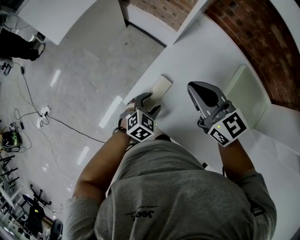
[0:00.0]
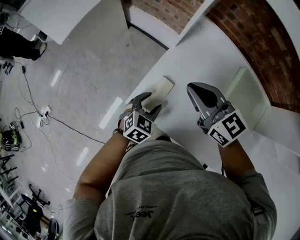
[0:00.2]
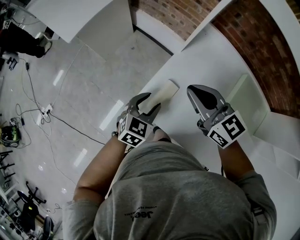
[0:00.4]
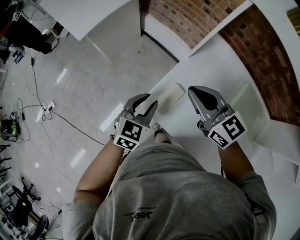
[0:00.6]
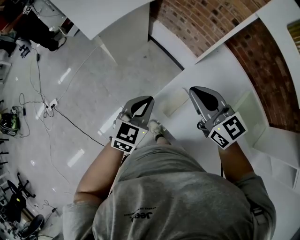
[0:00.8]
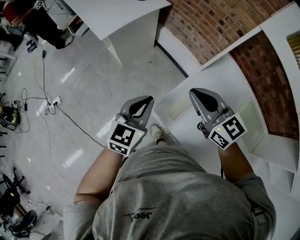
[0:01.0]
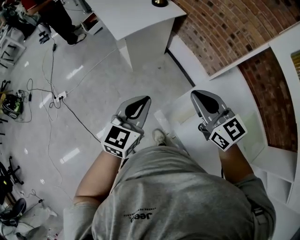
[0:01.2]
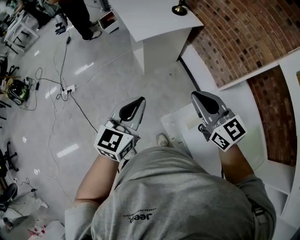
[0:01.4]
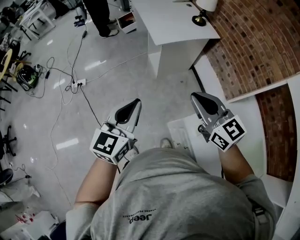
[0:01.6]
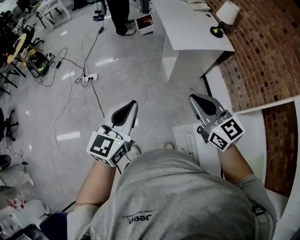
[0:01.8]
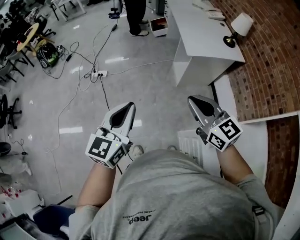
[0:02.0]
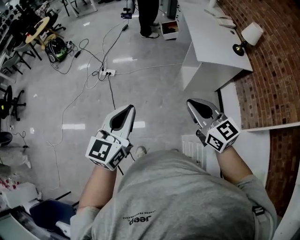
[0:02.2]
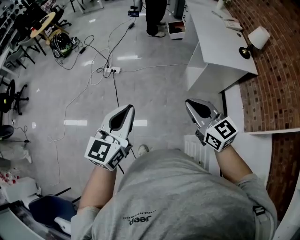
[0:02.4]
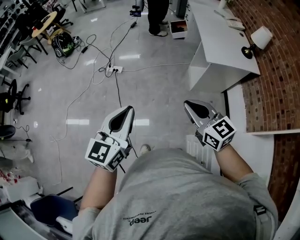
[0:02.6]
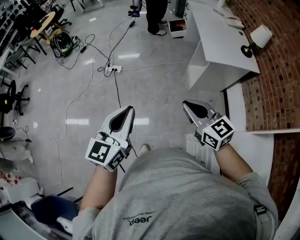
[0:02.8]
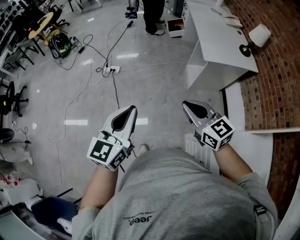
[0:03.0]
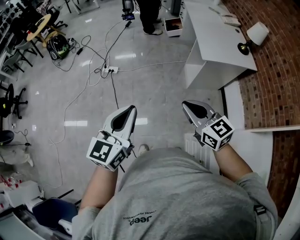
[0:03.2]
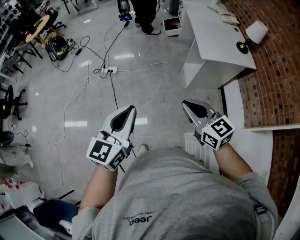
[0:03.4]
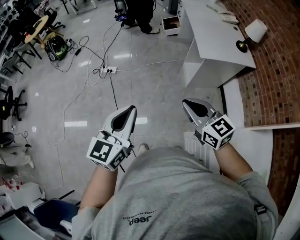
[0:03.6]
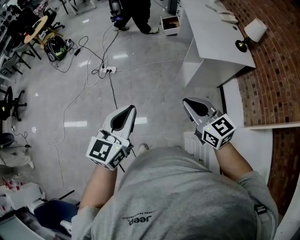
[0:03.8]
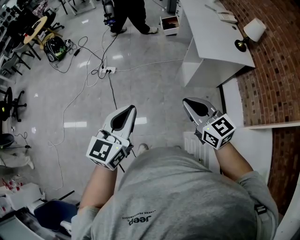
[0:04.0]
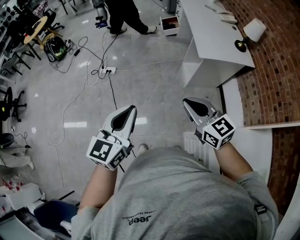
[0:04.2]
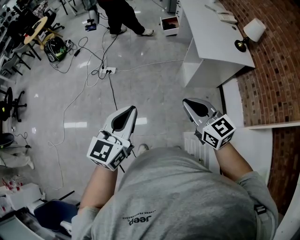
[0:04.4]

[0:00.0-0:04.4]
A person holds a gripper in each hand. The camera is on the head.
0:00.0 to 0:01.4: The left gripper moves upward, roughly 30 cm, points its fingers approximately 40 degrees further upward, and closes up, while the right gripper changes place by approximately 25 cm, and swivels approximately 20 degrees.
0:01.4 to 0:03.0: The left gripper changes place by roughly 30 cm, and swivels some 30 degrees. The right gripper ends up approximately 30 cm from where it was, and changes its angle by approximately 30 degrees.
0:03.0 to 0:04.4: The grippers make only small movements.

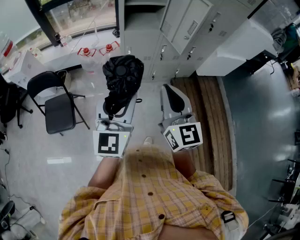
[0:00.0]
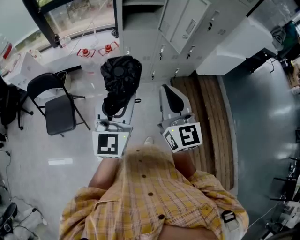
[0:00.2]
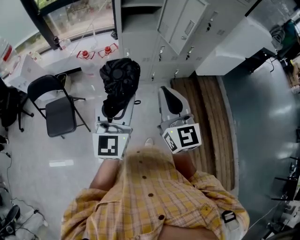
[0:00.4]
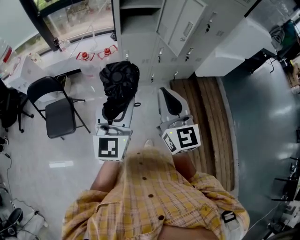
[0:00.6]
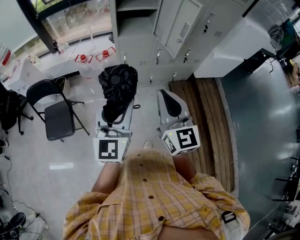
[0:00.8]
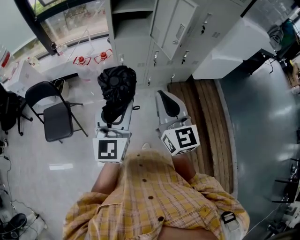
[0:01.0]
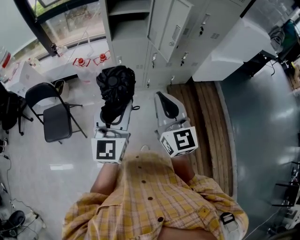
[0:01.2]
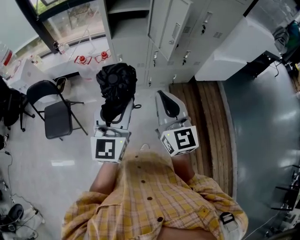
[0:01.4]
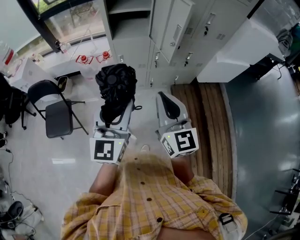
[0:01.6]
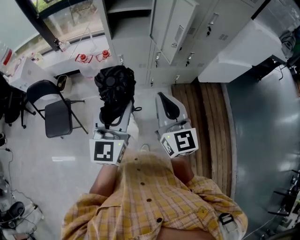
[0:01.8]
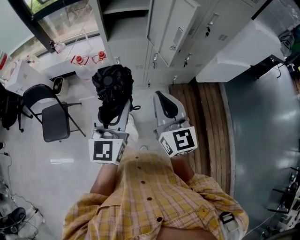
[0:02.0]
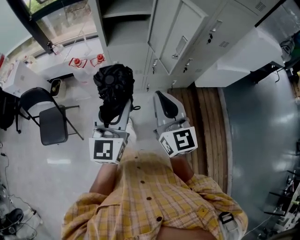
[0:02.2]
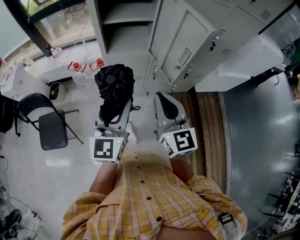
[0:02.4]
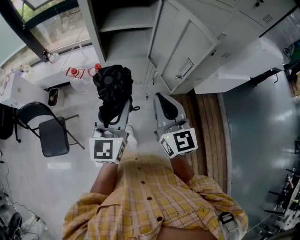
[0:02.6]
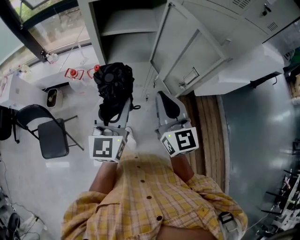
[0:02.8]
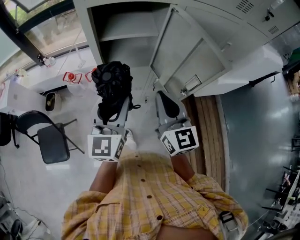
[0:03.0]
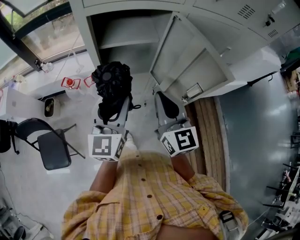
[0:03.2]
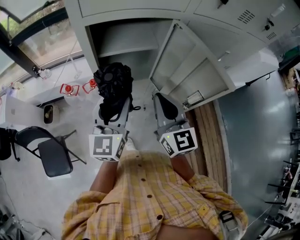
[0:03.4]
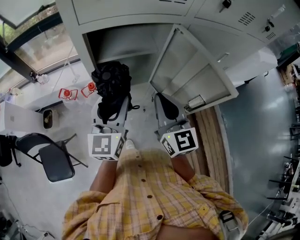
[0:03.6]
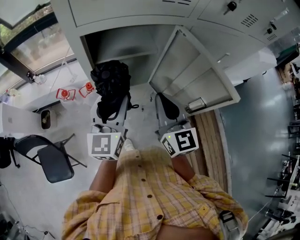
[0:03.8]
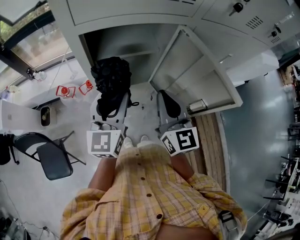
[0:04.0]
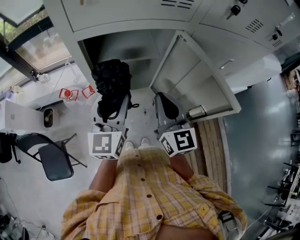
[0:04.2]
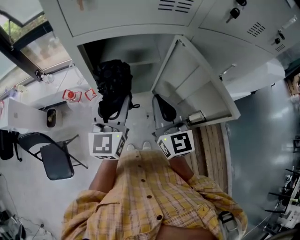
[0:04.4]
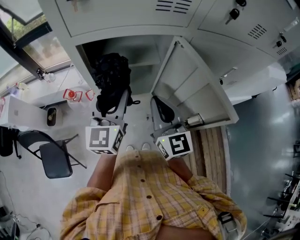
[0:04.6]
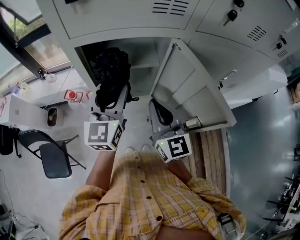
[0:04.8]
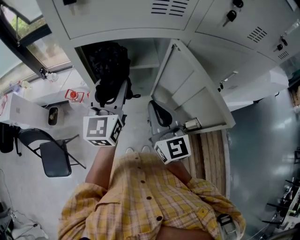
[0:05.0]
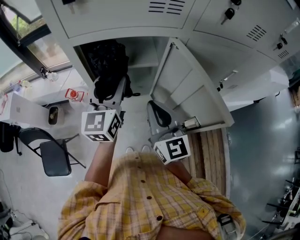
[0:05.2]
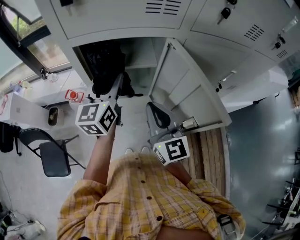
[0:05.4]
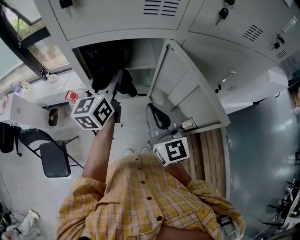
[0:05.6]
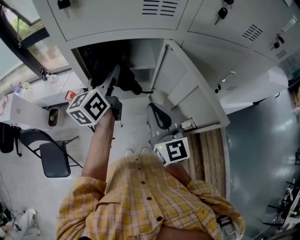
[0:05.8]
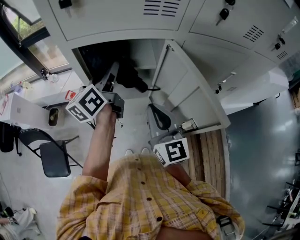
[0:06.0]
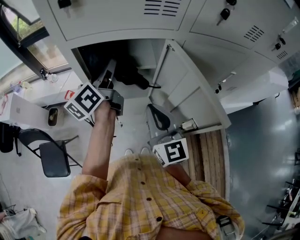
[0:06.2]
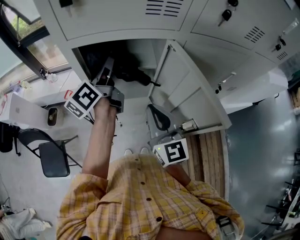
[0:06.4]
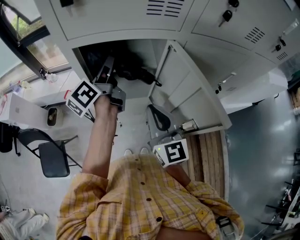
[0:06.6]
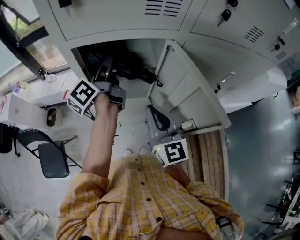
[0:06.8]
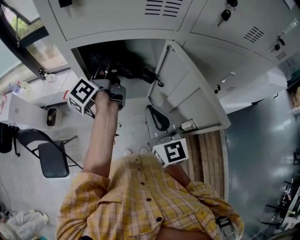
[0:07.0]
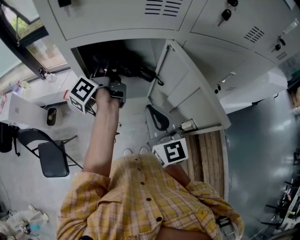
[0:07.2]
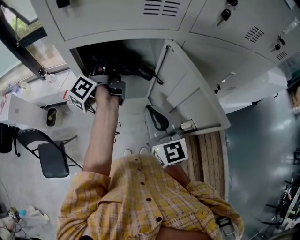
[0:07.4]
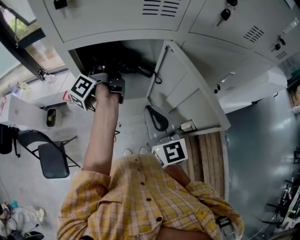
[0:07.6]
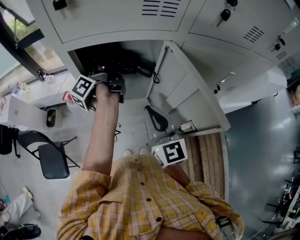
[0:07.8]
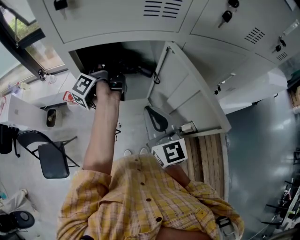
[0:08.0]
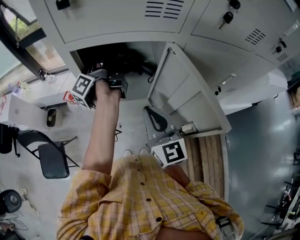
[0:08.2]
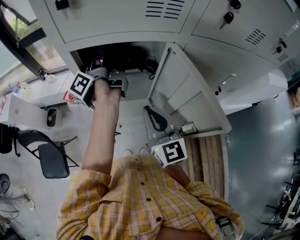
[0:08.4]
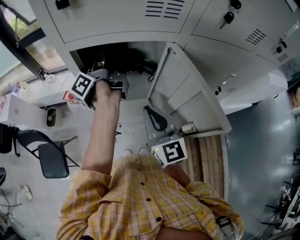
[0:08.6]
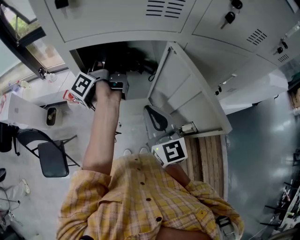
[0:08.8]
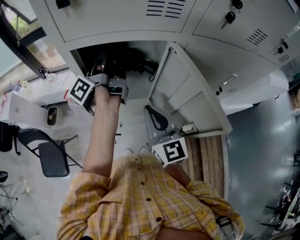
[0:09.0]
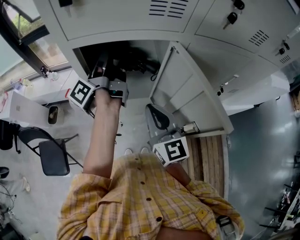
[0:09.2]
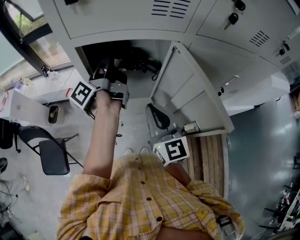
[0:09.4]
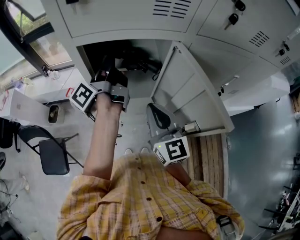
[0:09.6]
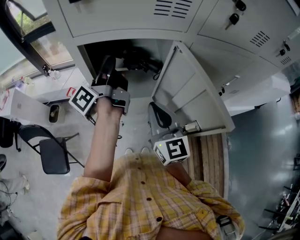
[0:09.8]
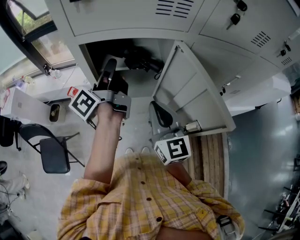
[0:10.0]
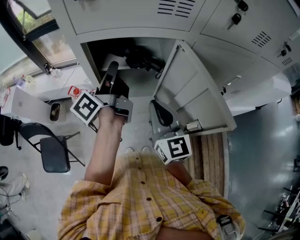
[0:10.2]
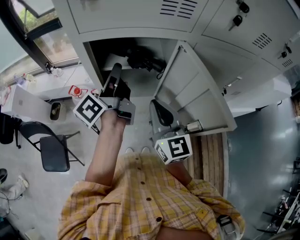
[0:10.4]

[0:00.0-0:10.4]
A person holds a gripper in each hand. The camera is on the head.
0:00.0 to 0:01.4: The two grippers go some 10 cm to the right.
0:01.4 to 0:03.0: The two grippers go some 30 cm forward.
0:03.0 to 0:04.4: The grippers both shift forward by approximately 15 cm.
0:04.4 to 0:06.0: The left gripper moves forward, roughly 10 cm, and swivels some 40 degrees.
0:06.0 to 0:07.4: The left gripper shifts roughly 5 cm forward, and rotates roughly 40 degrees.
0:07.4 to 0:09.0: The grippers stay close to where they were, moving slightly.
0:09.0 to 0:10.4: The left gripper travels backward by about 10 cm, turns by roughly 20 degrees, and closes its fingers.

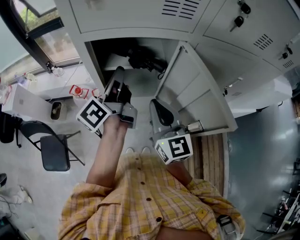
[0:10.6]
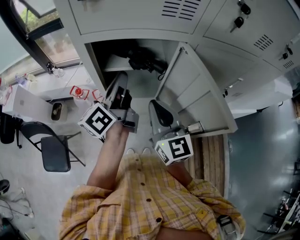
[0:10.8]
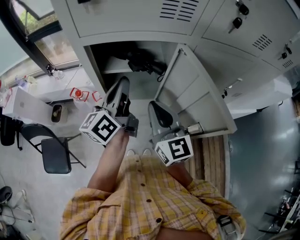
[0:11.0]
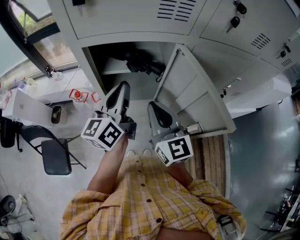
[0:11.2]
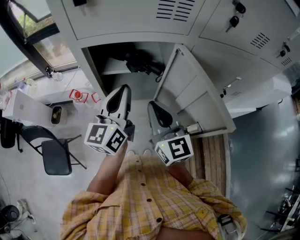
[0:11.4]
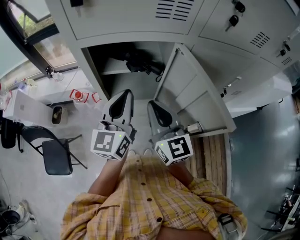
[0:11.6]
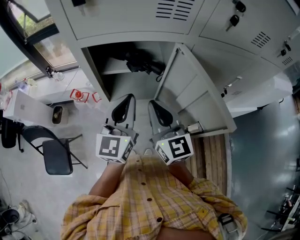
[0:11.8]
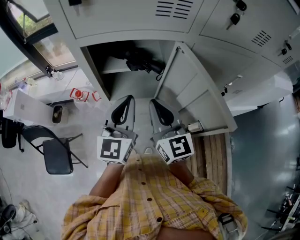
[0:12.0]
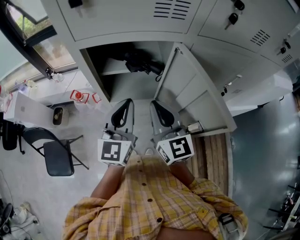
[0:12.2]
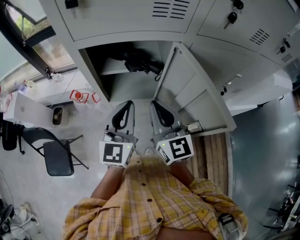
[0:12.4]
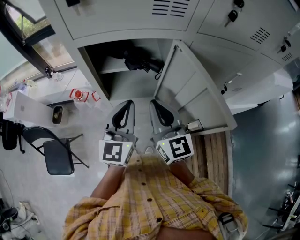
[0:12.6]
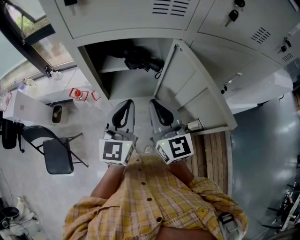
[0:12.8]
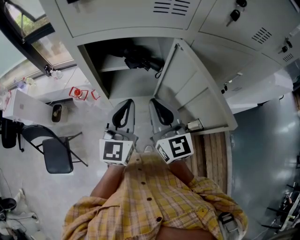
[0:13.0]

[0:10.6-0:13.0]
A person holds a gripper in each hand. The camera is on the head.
0:10.6 to 0:11.8: The left gripper goes about 10 cm backward, and twists roughly 60 degrees clockwise, seen from behind.
0:11.8 to 0:13.0: There are only small adjustments of the grippers.

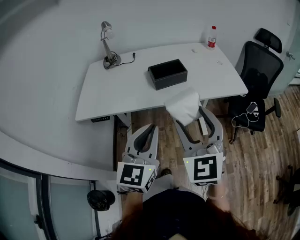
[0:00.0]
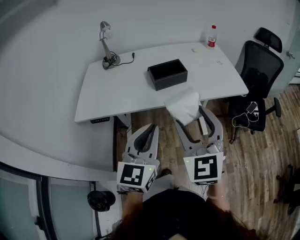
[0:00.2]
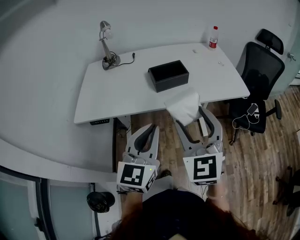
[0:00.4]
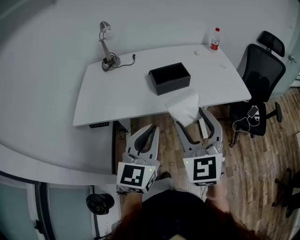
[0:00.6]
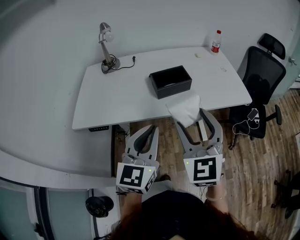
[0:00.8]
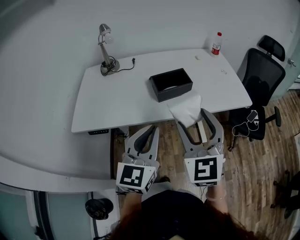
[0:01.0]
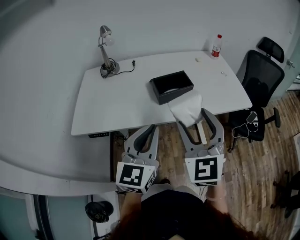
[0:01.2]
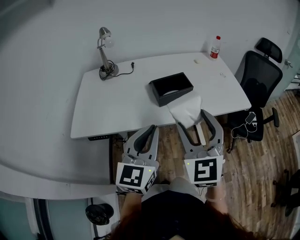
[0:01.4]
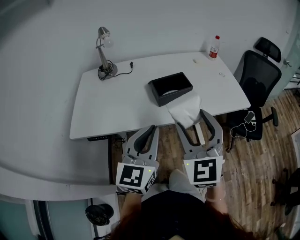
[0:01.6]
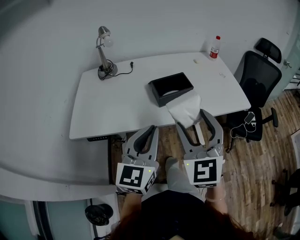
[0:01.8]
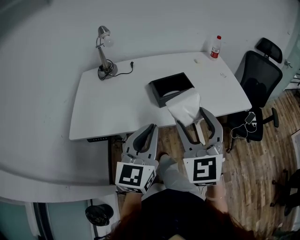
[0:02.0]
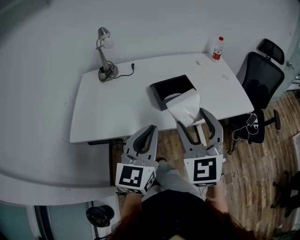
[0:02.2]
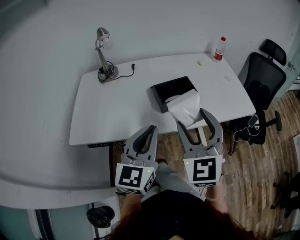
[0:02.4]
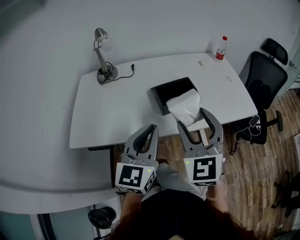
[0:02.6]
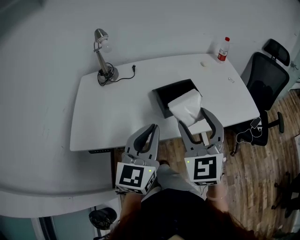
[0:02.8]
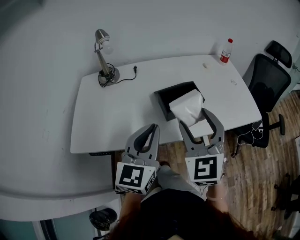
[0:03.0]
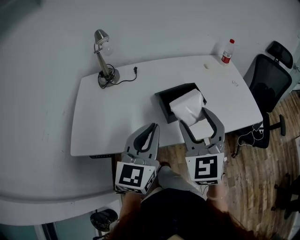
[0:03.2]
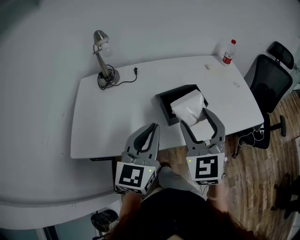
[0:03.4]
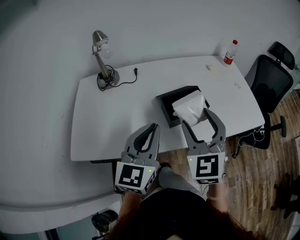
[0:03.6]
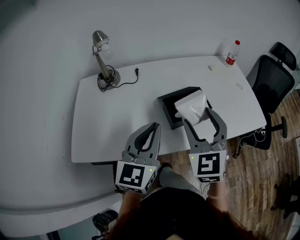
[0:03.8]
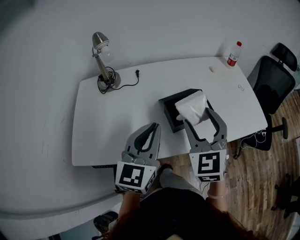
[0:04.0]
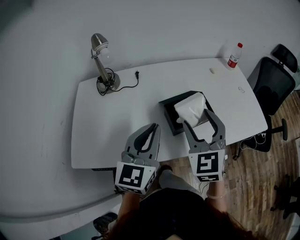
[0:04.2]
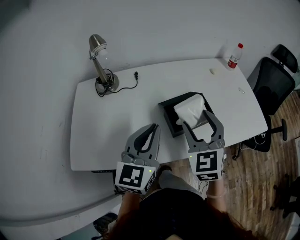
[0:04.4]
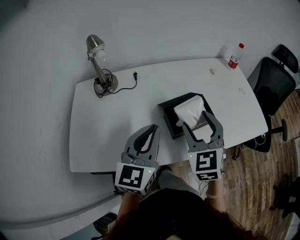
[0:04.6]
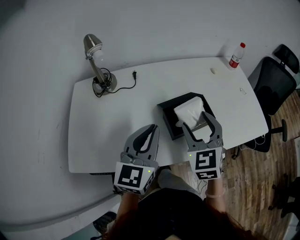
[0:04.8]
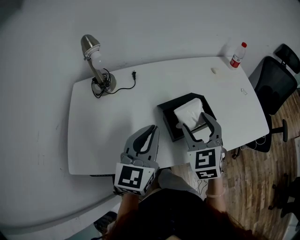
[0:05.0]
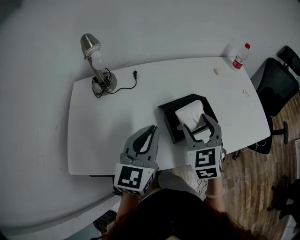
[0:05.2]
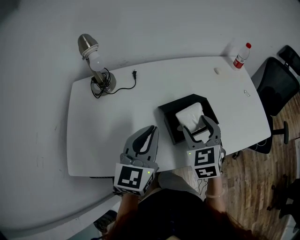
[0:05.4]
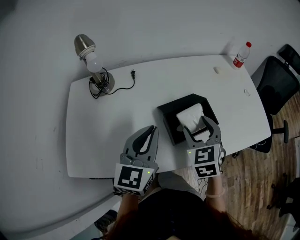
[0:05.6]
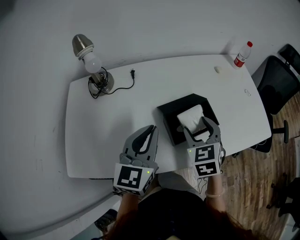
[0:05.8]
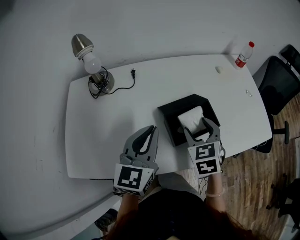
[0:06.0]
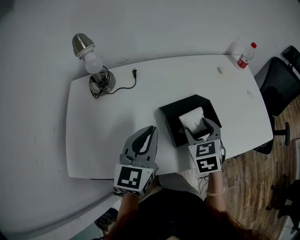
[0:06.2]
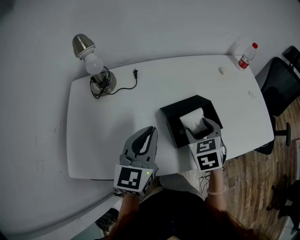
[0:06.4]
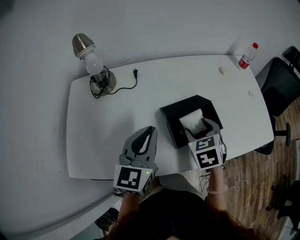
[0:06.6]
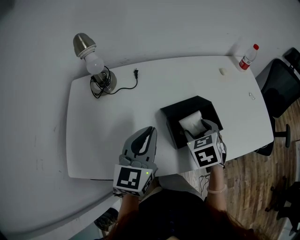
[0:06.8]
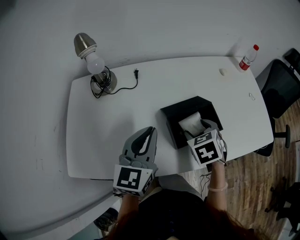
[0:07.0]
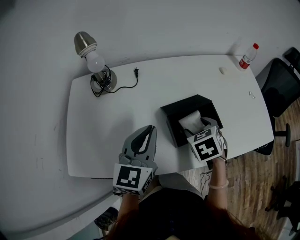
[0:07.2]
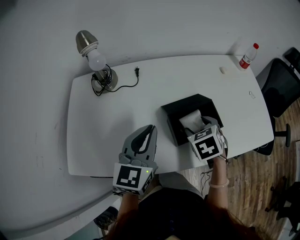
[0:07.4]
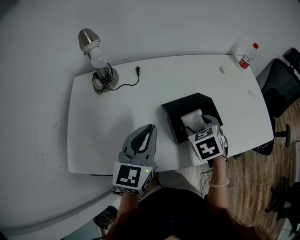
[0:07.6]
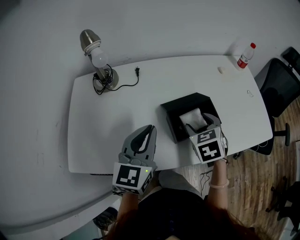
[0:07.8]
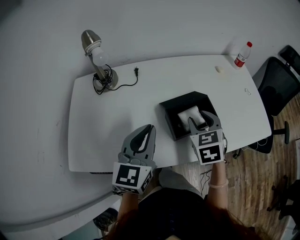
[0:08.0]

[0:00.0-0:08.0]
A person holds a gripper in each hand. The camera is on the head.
0:00.0 to 0:01.6: The grippers both shift forward by approximately 10 cm.
0:01.6 to 0:03.2: The grippers both shift forward by some 10 cm.
0:03.2 to 0:04.8: The right gripper goes approximately 15 cm forward and downward, while the left gripper goes some 10 cm forward.
0:04.8 to 0:06.4: The right gripper moves downward and forward, some 10 cm, and turns by approximately 30 degrees. The left gripper moves approximately 5 cm.
0:06.4 to 0:08.0: The right gripper closes.
